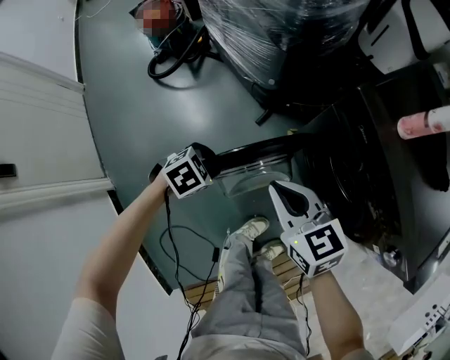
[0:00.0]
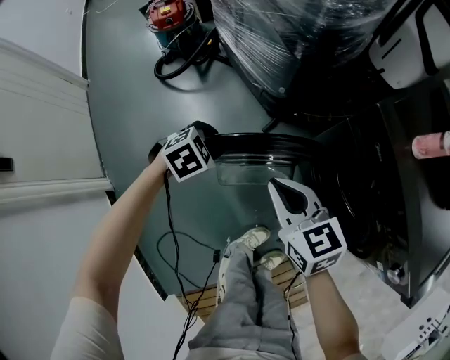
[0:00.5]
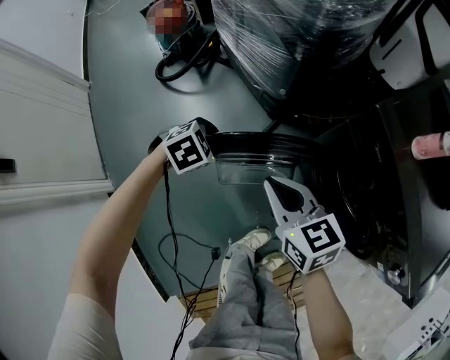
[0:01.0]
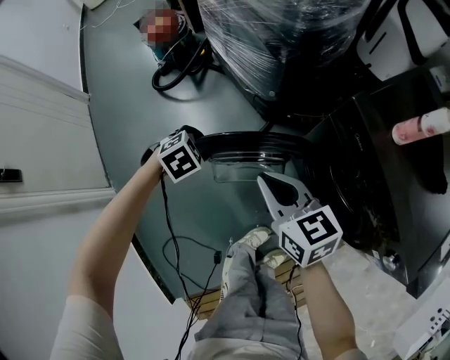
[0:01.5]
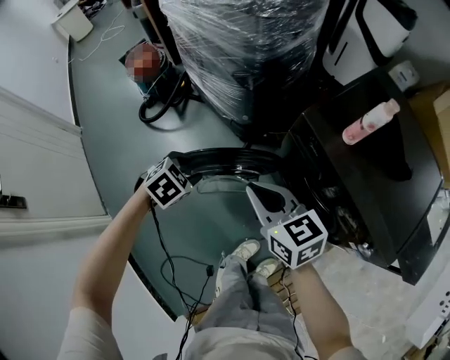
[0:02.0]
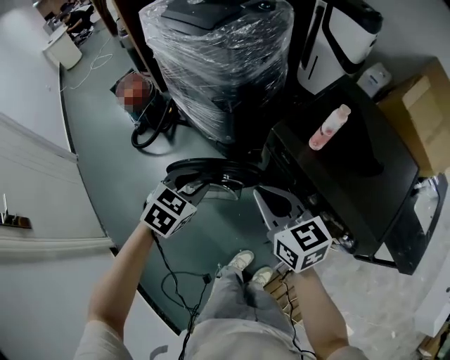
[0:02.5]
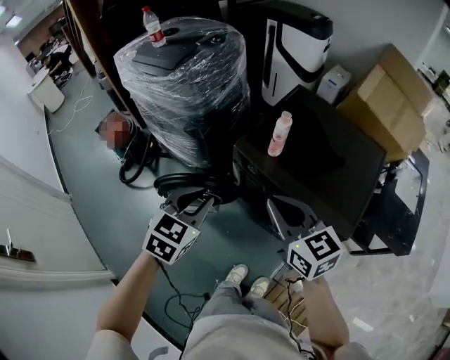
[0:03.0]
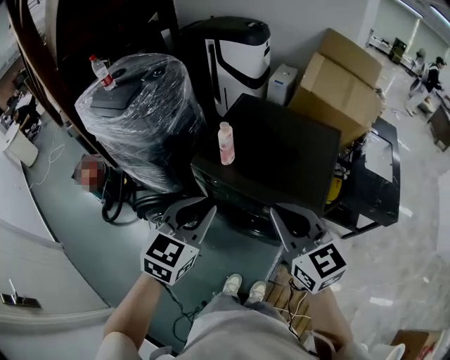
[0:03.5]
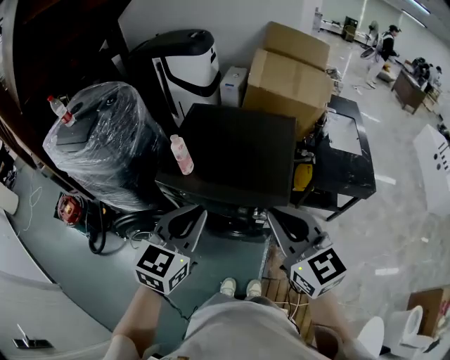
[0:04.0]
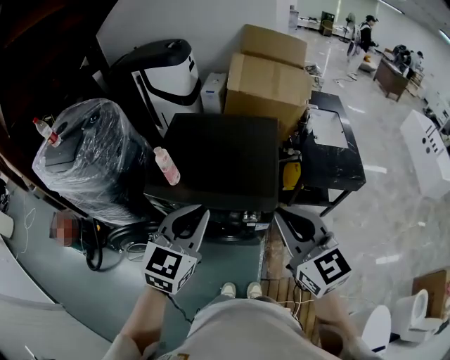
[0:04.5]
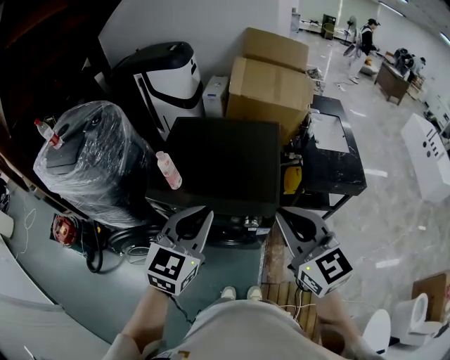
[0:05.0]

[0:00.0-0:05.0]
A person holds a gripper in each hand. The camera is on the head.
0:00.0 to 0:02.5: The left gripper is displaced upward by approximately 30 cm, and changes its angle by roughly 30 degrees. Meanwhile the right gripper heads upward and to the right, covering approximately 20 cm.
0:02.5 to 0:05.0: Both grippers are carried some 40 cm. The left gripper tips its fingers upward by about 30 degrees, and closes, while the right gripper rotates roughly 50 degrees.

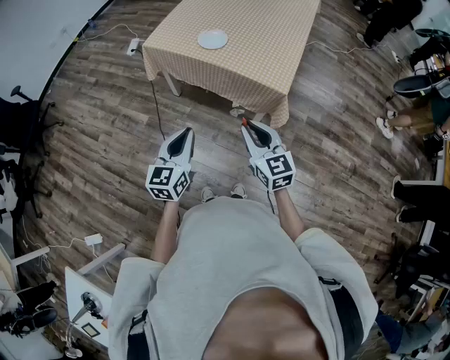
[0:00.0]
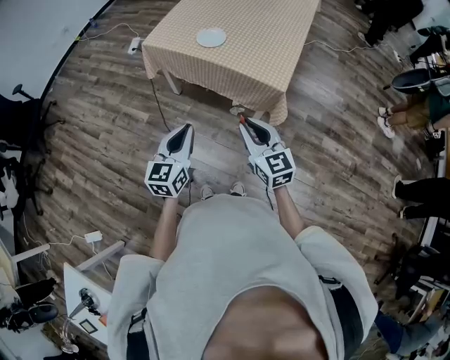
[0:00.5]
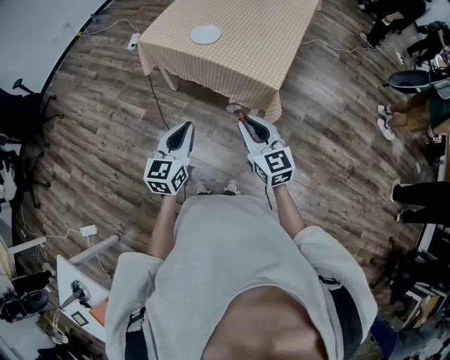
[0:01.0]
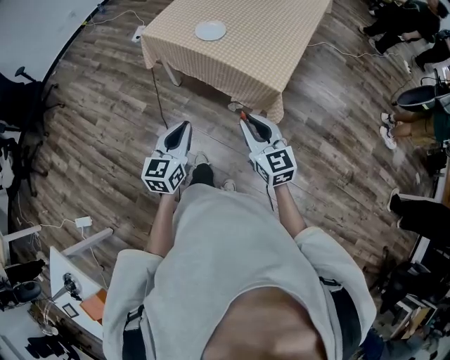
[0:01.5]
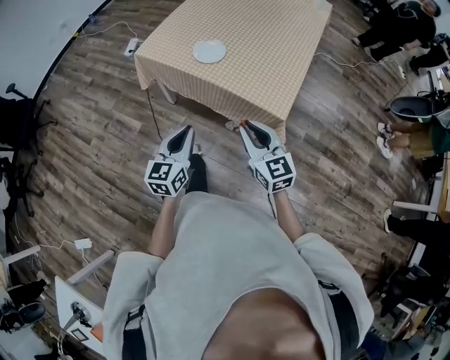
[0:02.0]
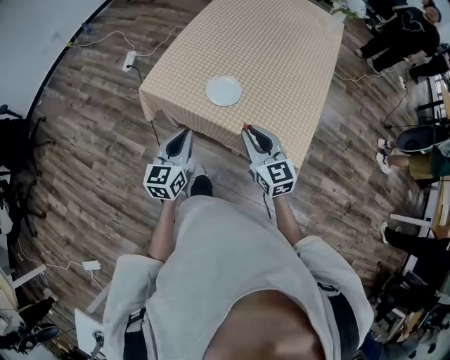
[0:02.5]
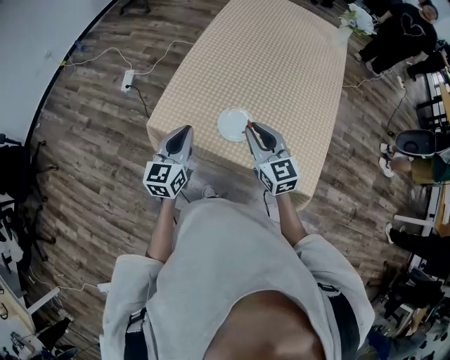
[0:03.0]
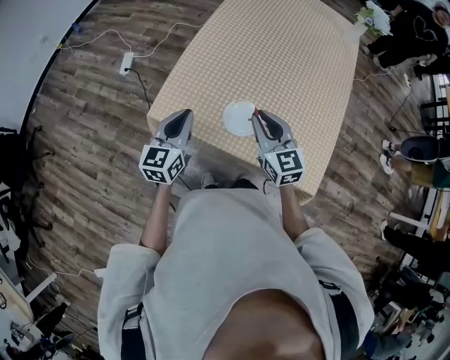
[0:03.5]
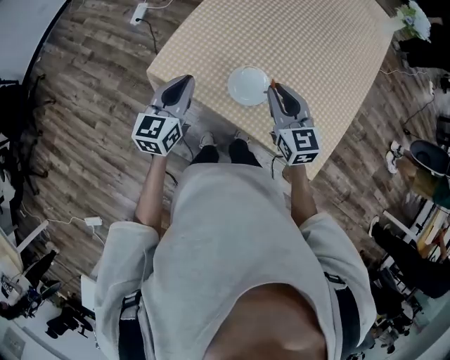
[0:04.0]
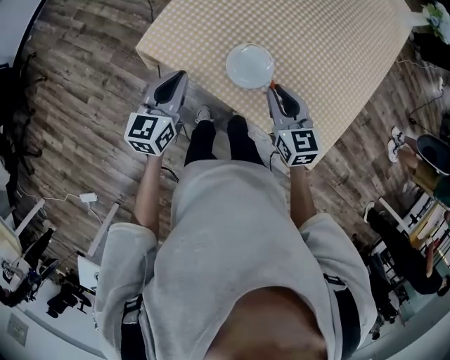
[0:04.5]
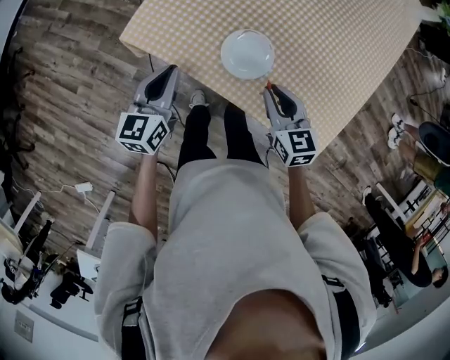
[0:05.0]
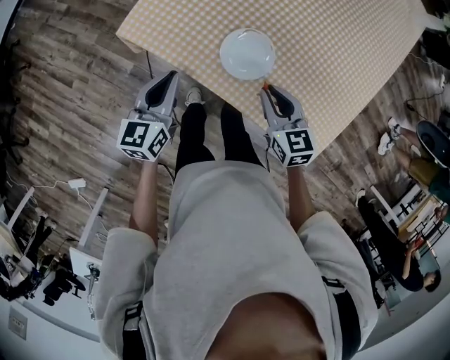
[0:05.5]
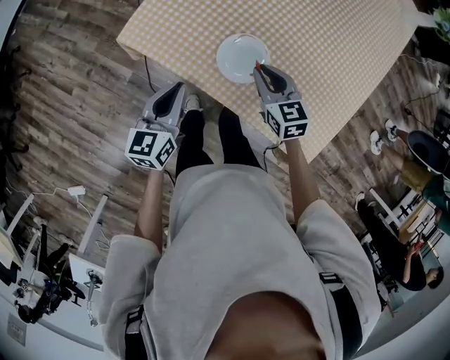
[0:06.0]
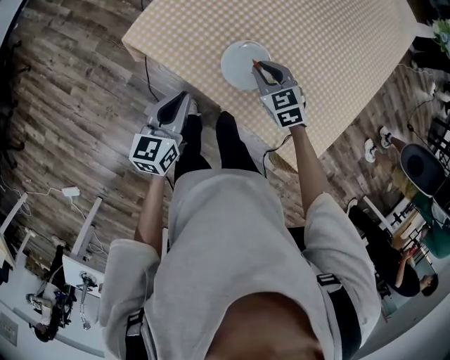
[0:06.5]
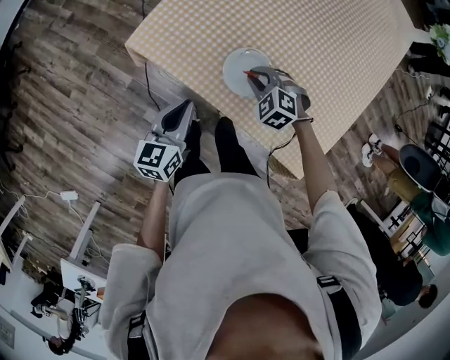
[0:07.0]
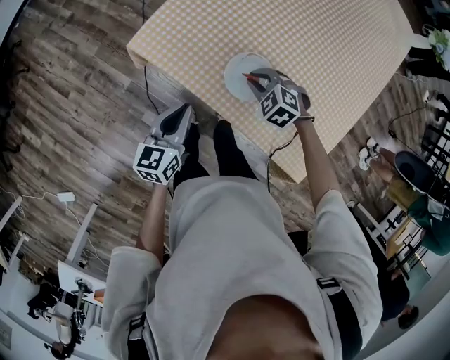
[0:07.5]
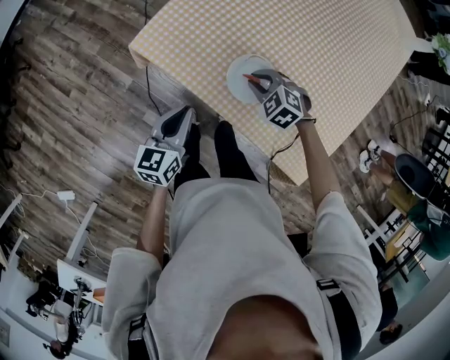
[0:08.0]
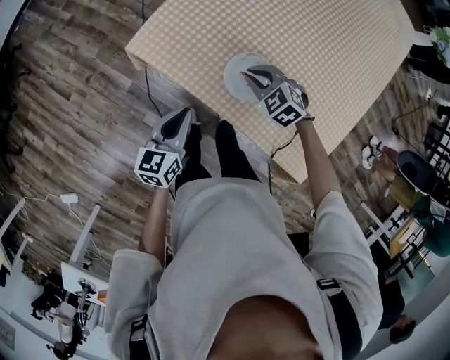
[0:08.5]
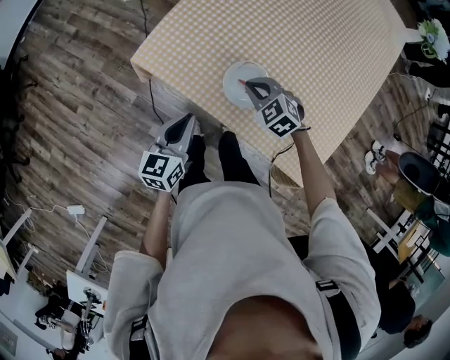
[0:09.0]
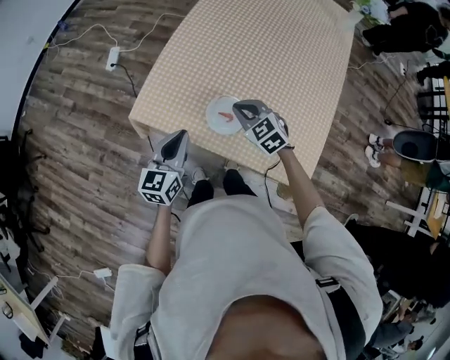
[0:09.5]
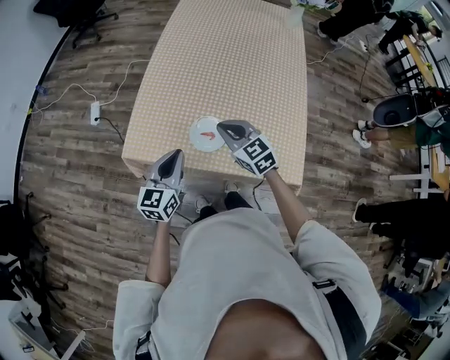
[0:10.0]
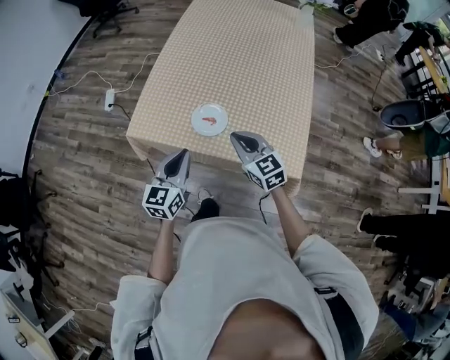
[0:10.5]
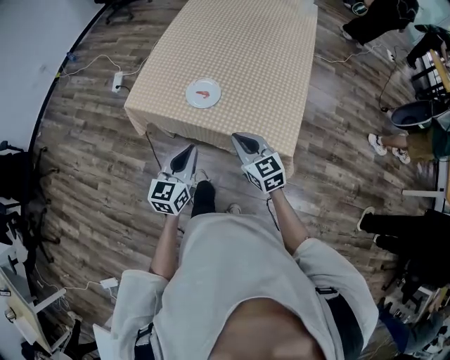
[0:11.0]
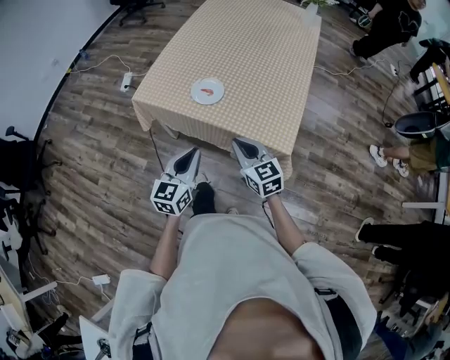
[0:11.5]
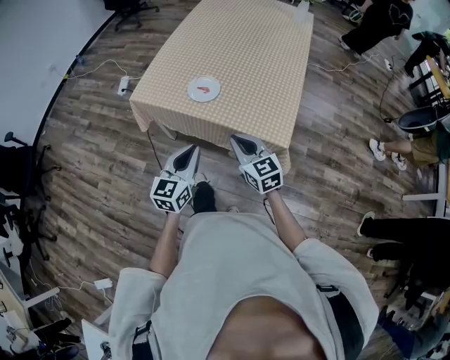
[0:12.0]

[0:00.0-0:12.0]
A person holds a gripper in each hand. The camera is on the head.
0:00.0 to 0:02.0: The two grippers go roughly 10 cm forward.
0:02.0 to 0:04.0: The pair of grippers is taken forward, approximately 40 cm.
0:04.0 to 0:06.0: The left gripper shifts approximately 15 cm downward and backward, while the right gripper moves downward, roughly 15 cm.
0:06.0 to 0:08.0: The right gripper moves downward, approximately 5 cm, and rotates around the line of its fingers by approximately 40 degrees, counterclockwise from behind.
0:08.0 to 0:10.0: The left gripper travels upward by roughly 15 cm, and changes its angle by some 30 degrees, while the right gripper is displaced upward by about 20 cm, and angles its fingers upward, by roughly 40 degrees.
0:10.0 to 0:12.0: Both grippers travel together backward, approximately 25 cm.

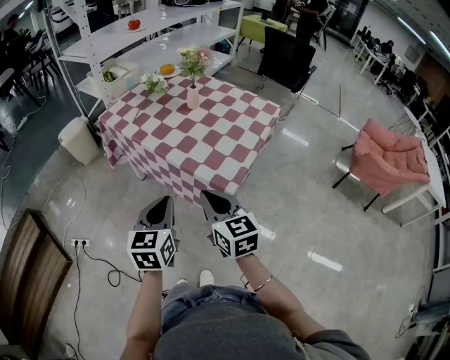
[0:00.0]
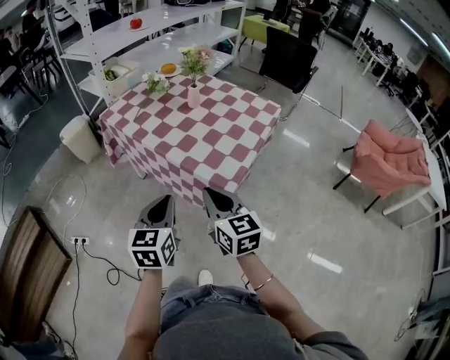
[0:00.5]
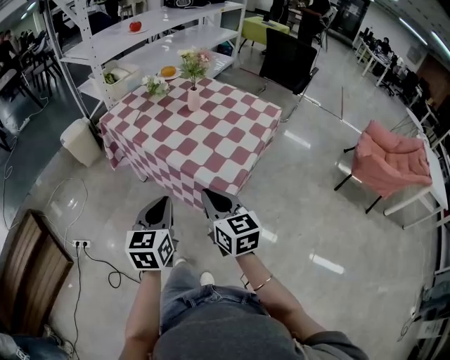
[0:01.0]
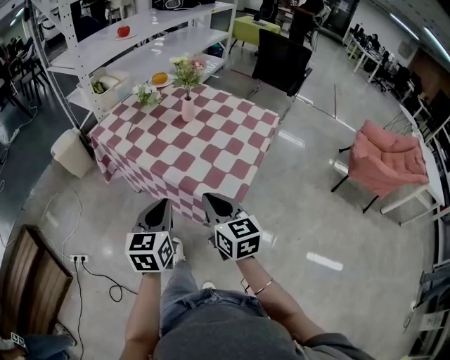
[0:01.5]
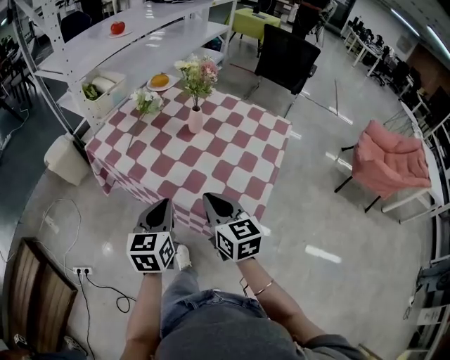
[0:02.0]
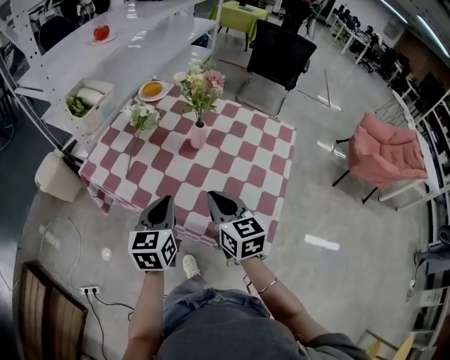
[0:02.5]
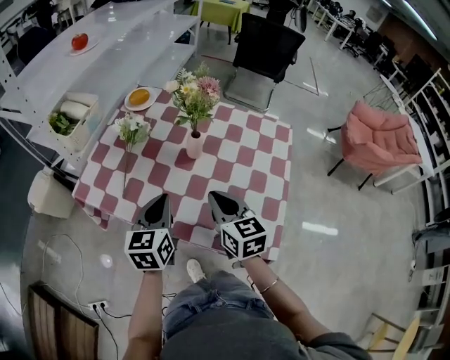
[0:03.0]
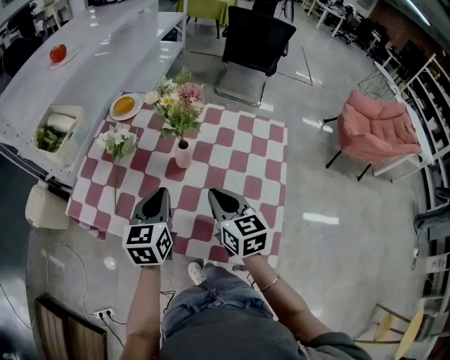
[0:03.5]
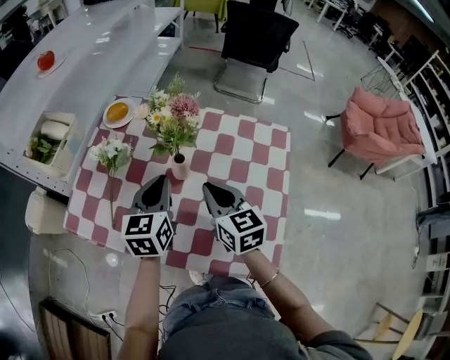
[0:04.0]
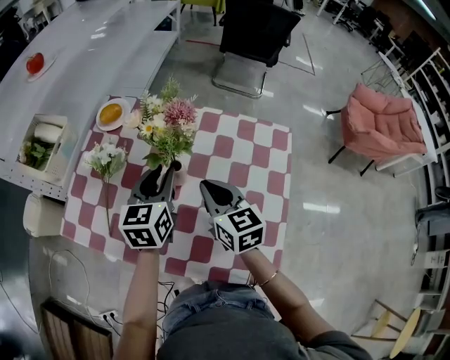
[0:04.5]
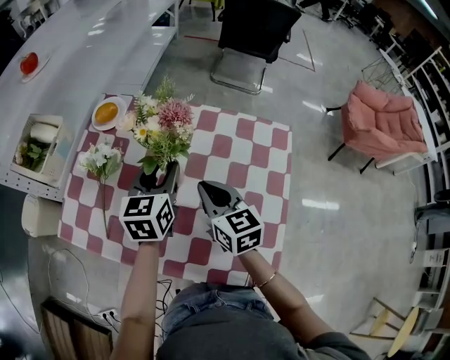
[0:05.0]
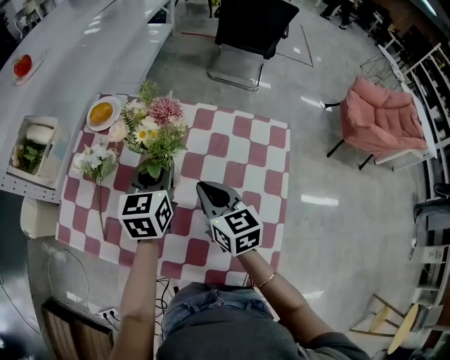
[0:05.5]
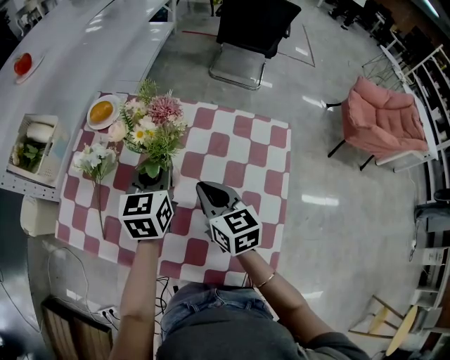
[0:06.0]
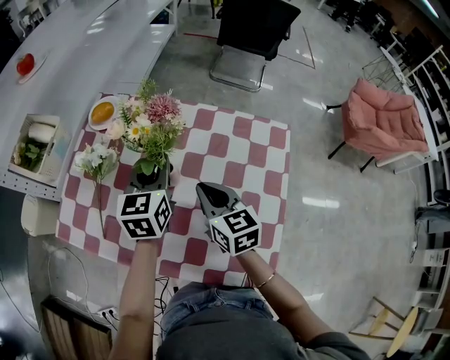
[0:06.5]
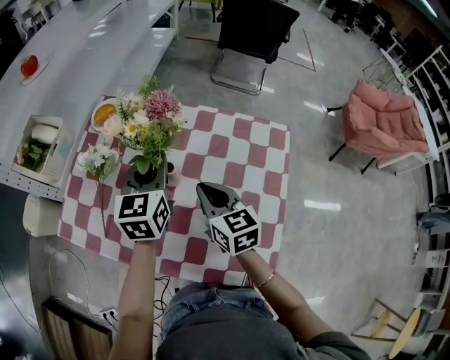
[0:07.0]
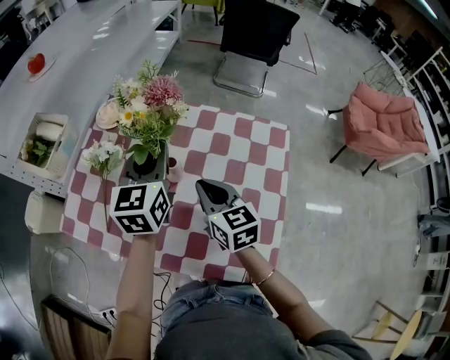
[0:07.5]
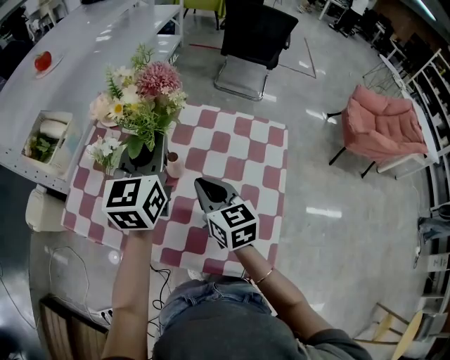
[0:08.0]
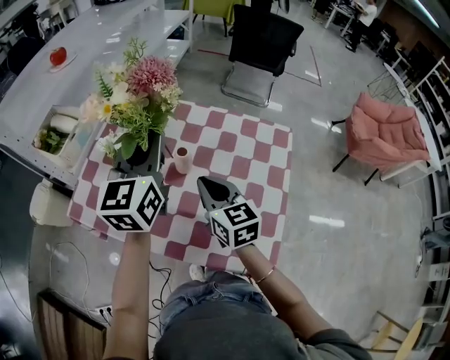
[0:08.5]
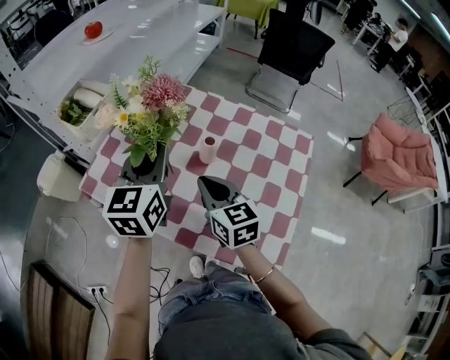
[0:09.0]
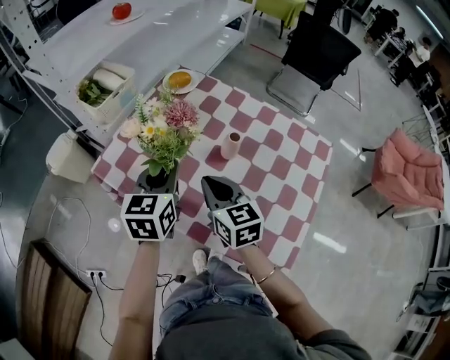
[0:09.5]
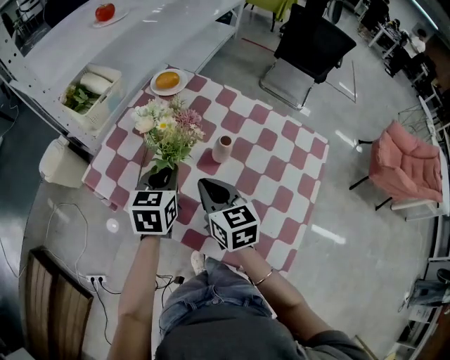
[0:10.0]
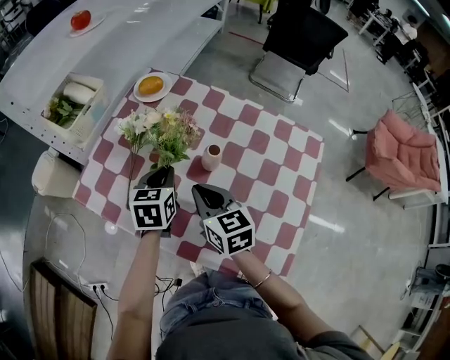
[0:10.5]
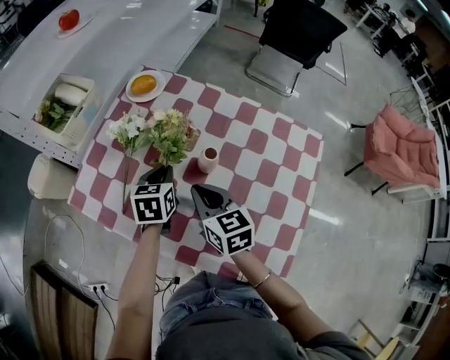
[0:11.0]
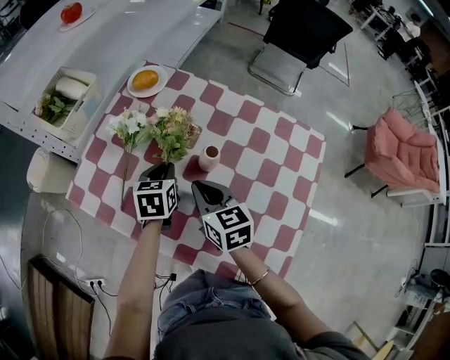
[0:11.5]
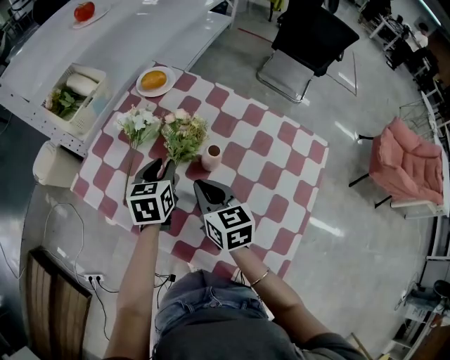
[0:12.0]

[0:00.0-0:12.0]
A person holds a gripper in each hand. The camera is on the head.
0:00.0 to 0:02.0: The grippers both shift forward by roughly 20 cm.
0:02.0 to 0:04.0: Both grippers move forward, roughly 30 cm.
0:04.0 to 0:06.0: The right gripper ends up approximately 5 cm from where it was. The left gripper heads forward, covering some 10 cm, and opens and closes again.
0:06.0 to 0:08.0: The right gripper moves about 5 cm; the left gripper moves upward, roughly 15 cm.
0:08.0 to 0:10.0: The right gripper shifts about 15 cm to the left. The left gripper heads downward and to the left, covering about 20 cm, and swivels about 30 degrees.
0:10.0 to 0:12.0: The left gripper moves forward, roughly 5 cm, and opens up. The right gripper ends up roughly 5 cm from where it was.
